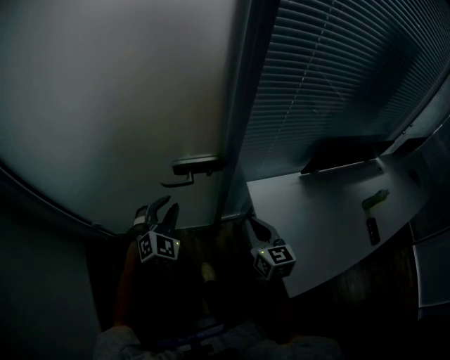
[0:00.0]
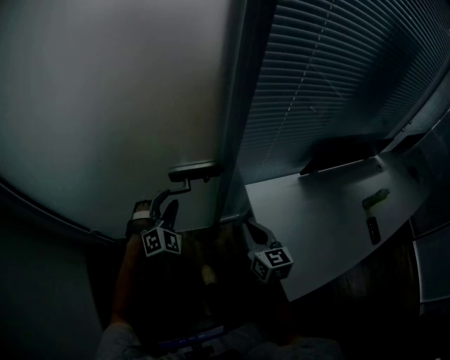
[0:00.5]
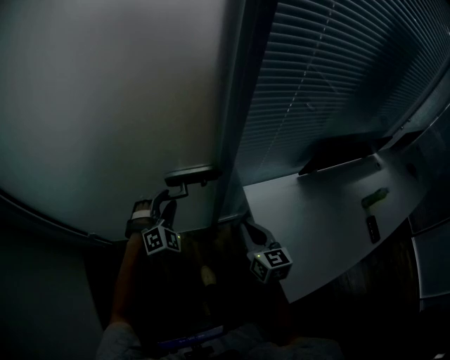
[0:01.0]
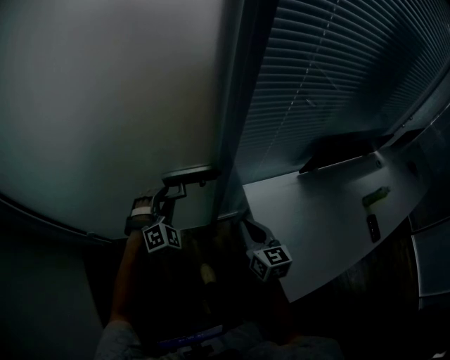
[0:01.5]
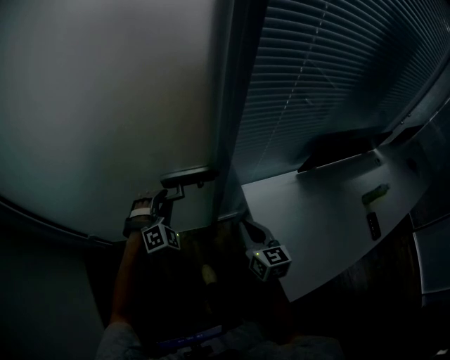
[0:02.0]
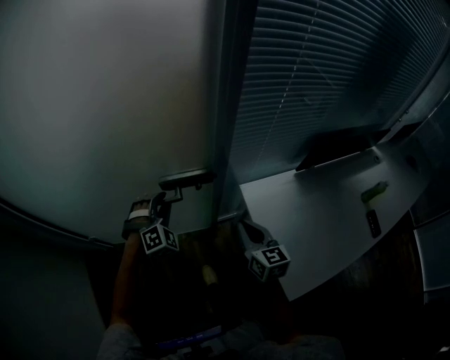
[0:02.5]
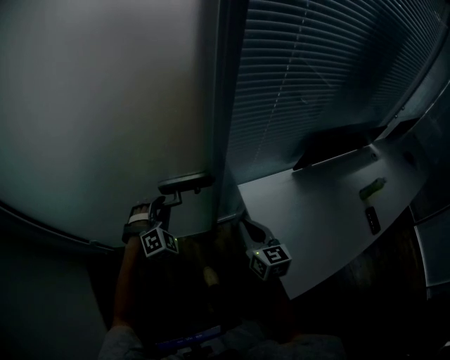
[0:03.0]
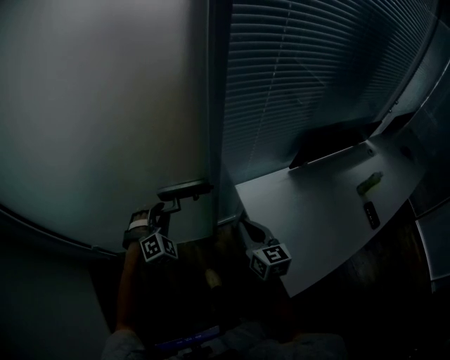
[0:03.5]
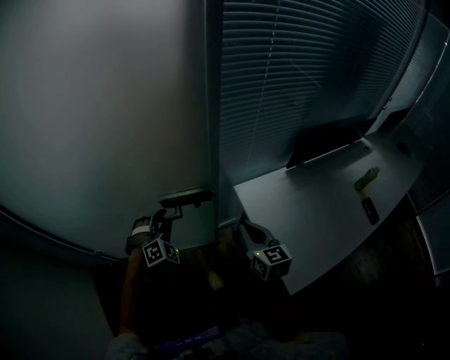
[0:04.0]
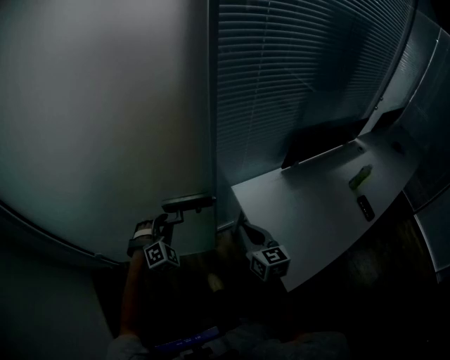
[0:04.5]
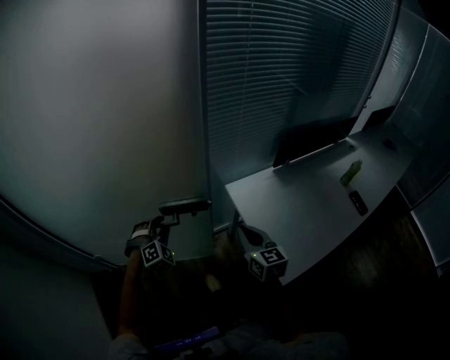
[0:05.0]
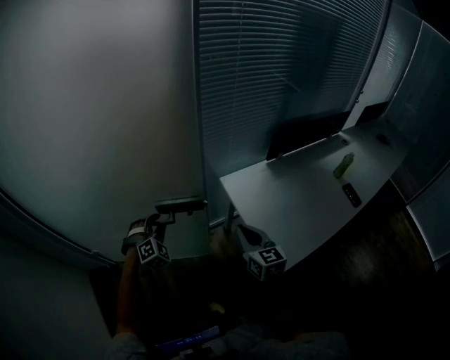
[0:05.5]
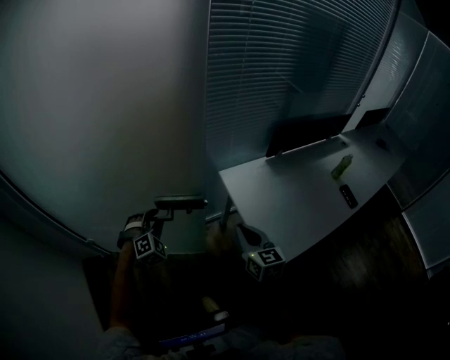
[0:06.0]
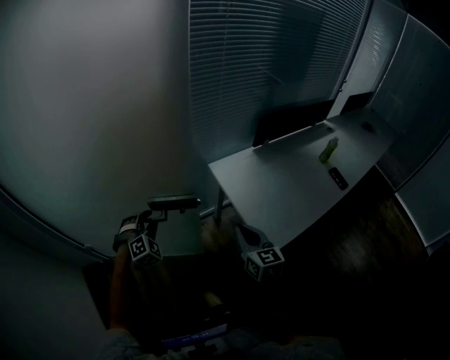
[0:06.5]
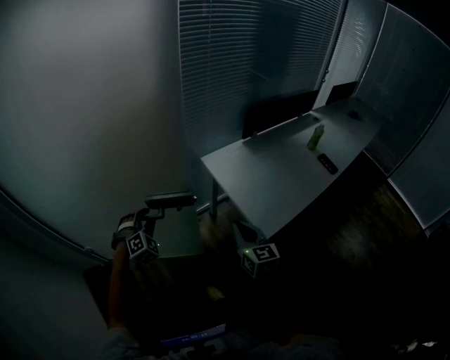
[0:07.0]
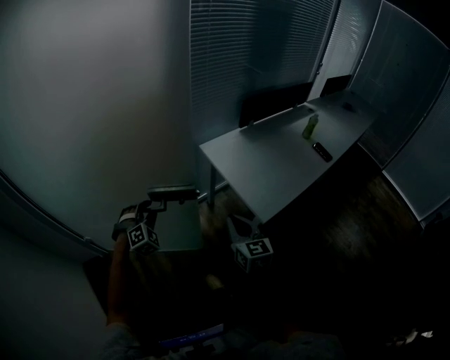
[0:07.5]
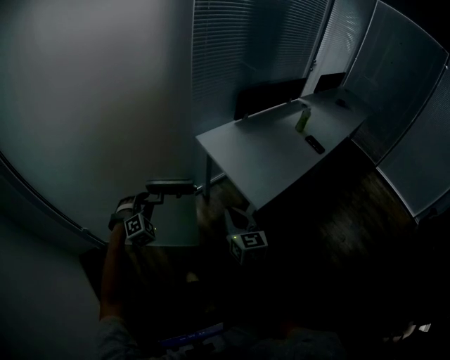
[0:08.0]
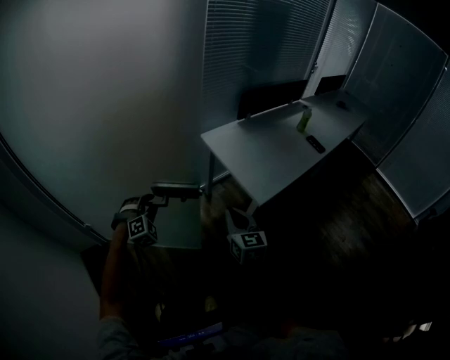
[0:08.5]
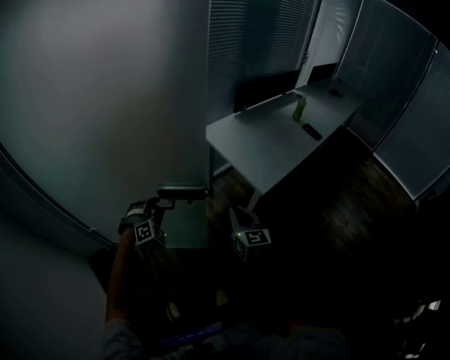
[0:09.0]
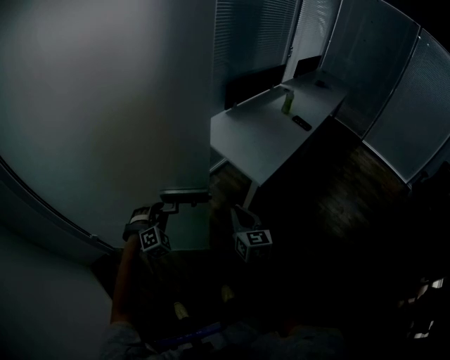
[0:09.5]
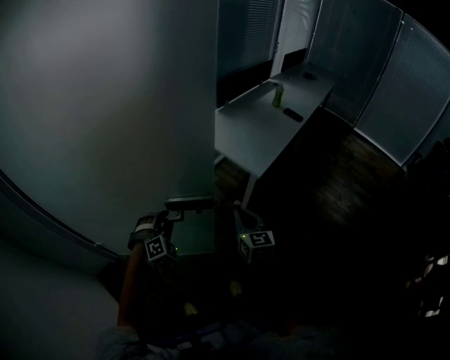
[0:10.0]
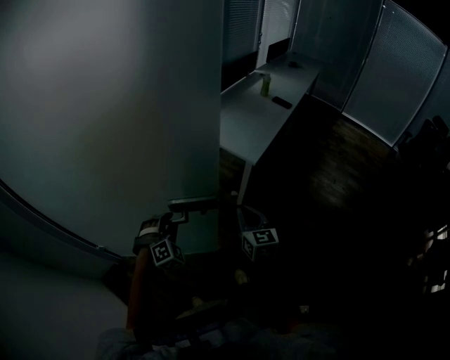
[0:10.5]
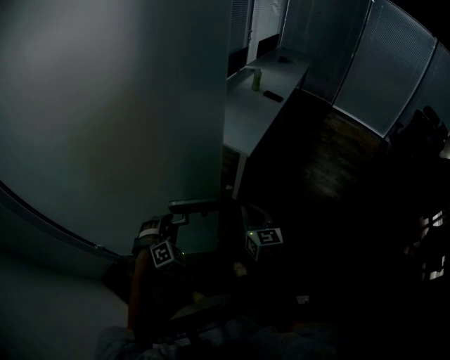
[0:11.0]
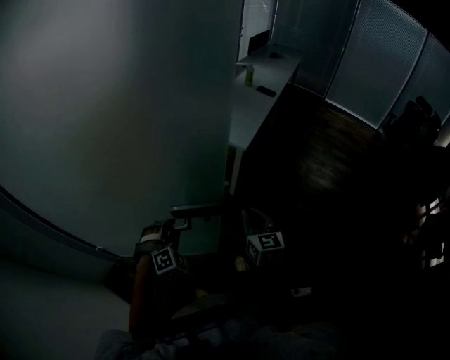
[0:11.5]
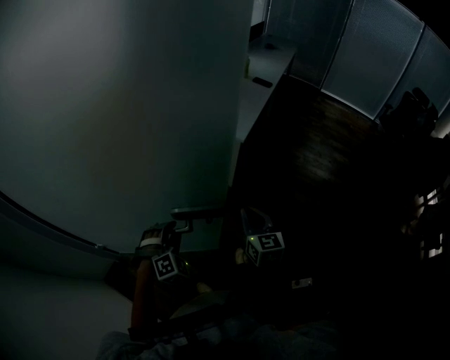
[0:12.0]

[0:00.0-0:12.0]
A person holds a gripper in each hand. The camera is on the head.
0:00.0 to 0:02.0: The left gripper travels forward by about 10 cm, and changes its angle by roughly 20 degrees.
0:02.0 to 0:04.0: The left gripper moves backward, about 5 cm.
0:04.0 to 0:06.0: Both grippers travel together backward, approximately 15 cm.
0:06.0 to 0:08.0: The grippers both shift backward by about 20 cm.
0:08.0 to 0:10.0: The left gripper travels backward by about 15 cm, while the right gripper travels backward and to the left by roughly 15 cm.
0:10.0 to 0:12.0: The grippers both shift backward by some 15 cm.

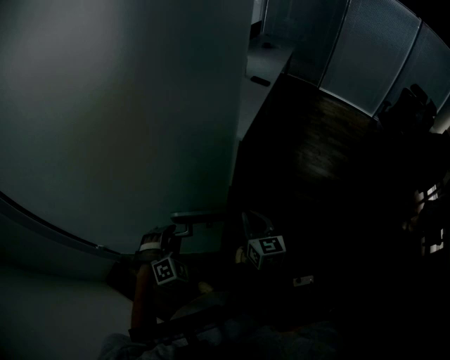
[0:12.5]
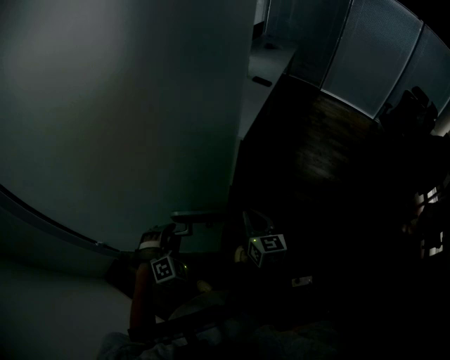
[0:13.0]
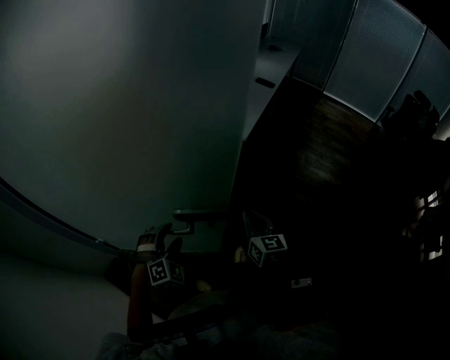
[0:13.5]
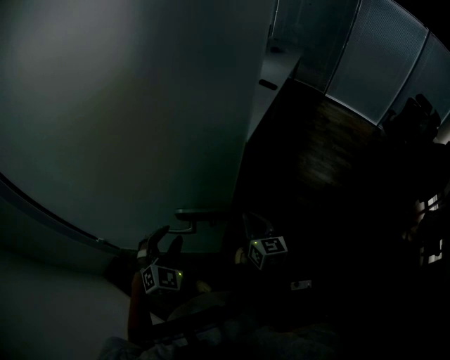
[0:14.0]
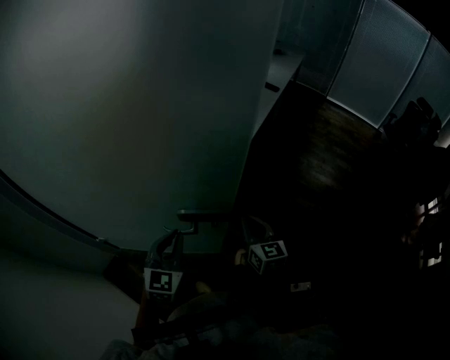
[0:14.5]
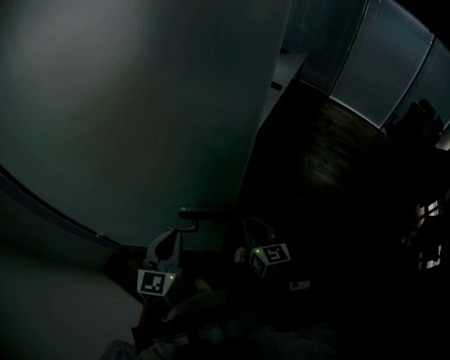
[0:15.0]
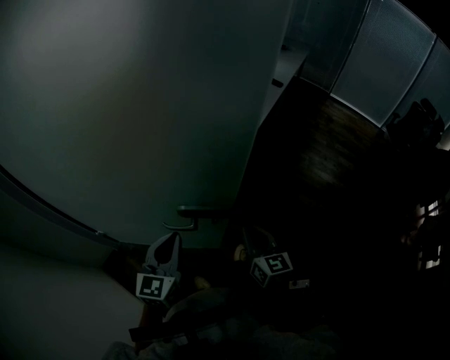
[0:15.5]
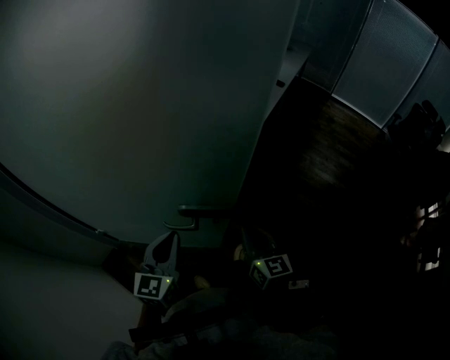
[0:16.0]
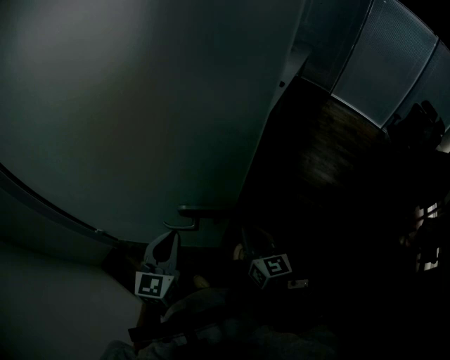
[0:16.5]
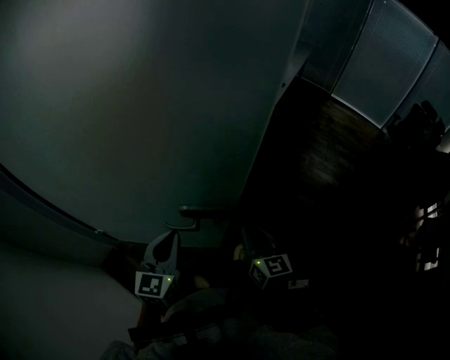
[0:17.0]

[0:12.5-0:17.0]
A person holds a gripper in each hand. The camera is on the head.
0:12.5 to 0:14.5: The left gripper heads upward, covering about 10 cm, rotates around the line of its fingers by some 50 degrees, counterclockwise from behind, and closes.
0:14.5 to 0:17.0: The grippers make only small movements.

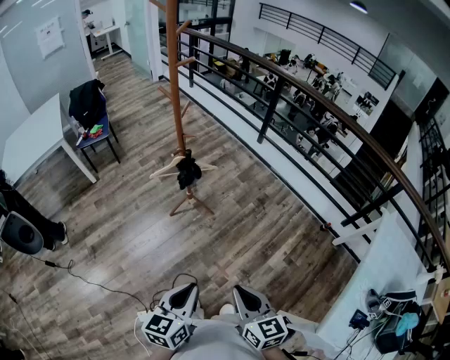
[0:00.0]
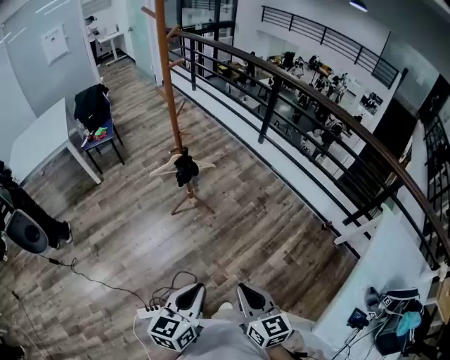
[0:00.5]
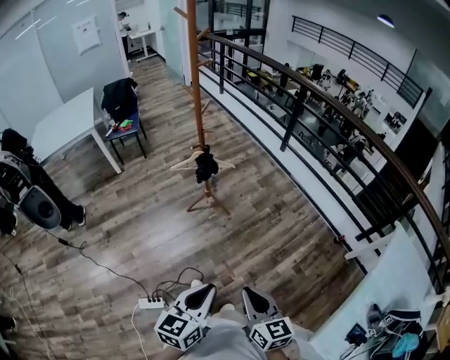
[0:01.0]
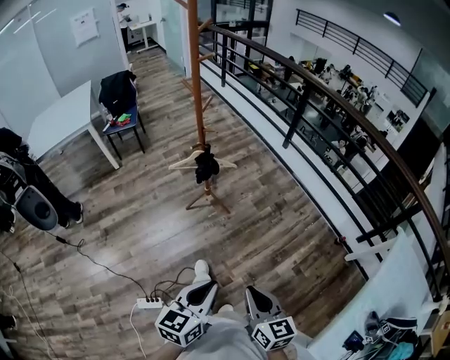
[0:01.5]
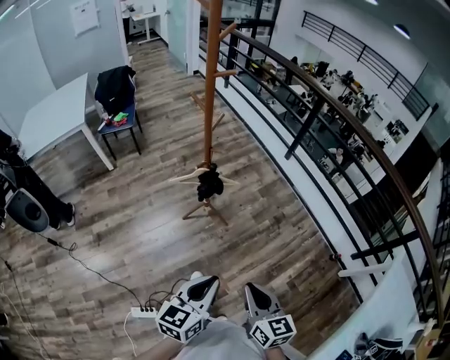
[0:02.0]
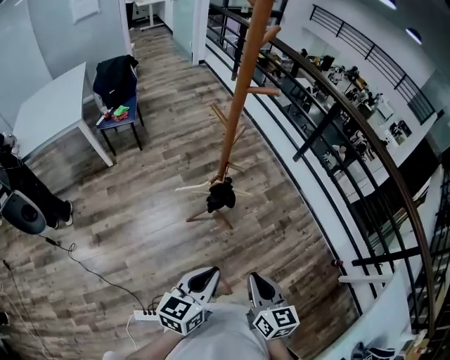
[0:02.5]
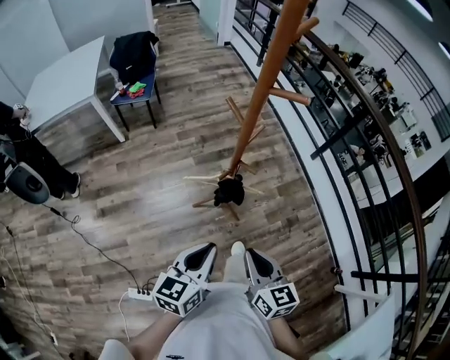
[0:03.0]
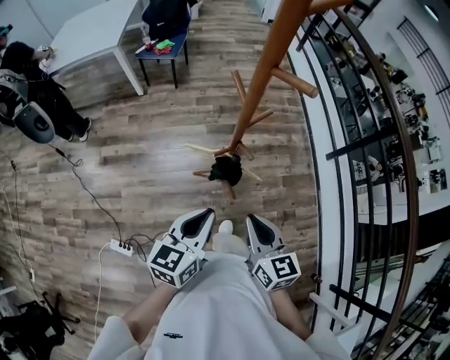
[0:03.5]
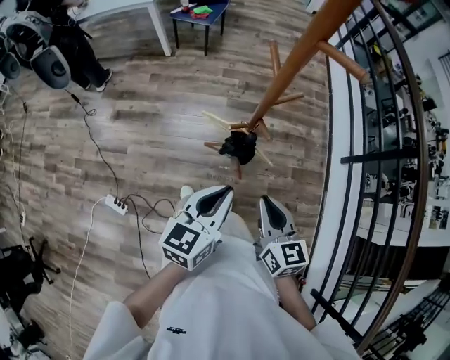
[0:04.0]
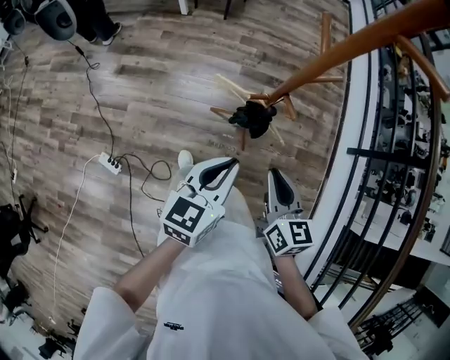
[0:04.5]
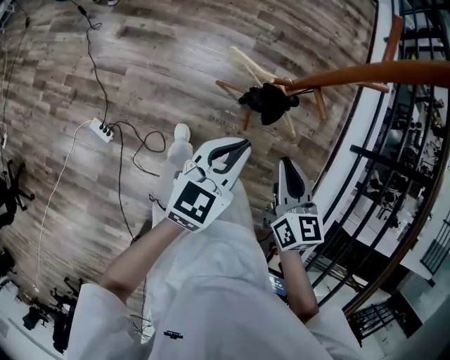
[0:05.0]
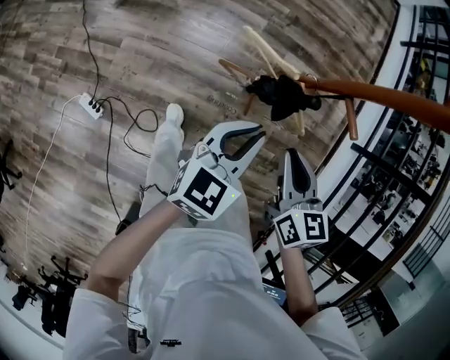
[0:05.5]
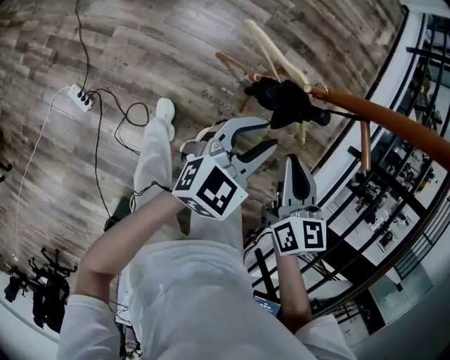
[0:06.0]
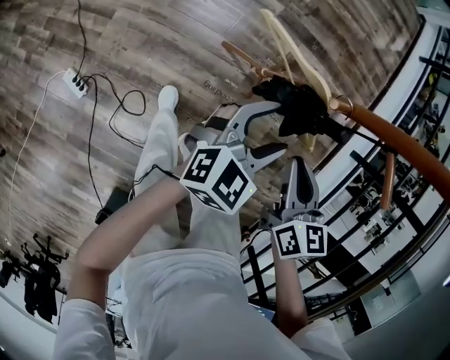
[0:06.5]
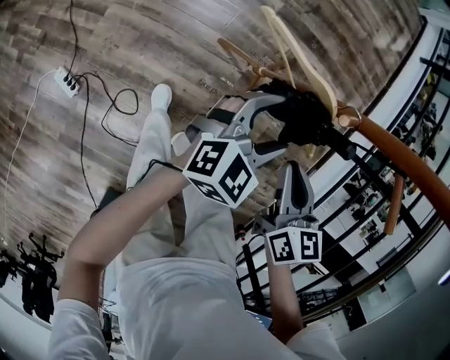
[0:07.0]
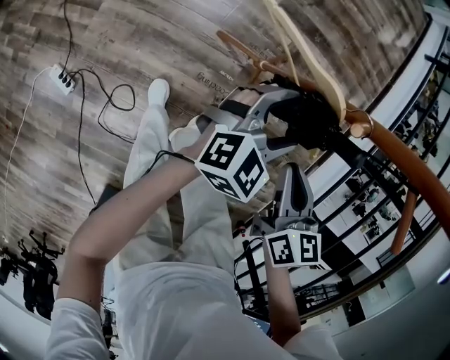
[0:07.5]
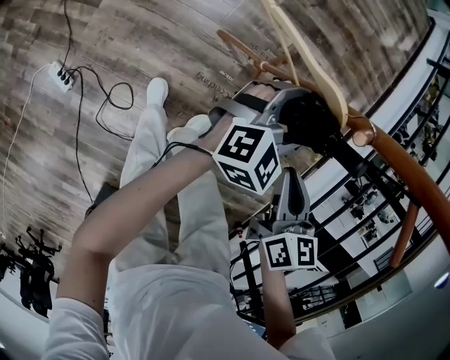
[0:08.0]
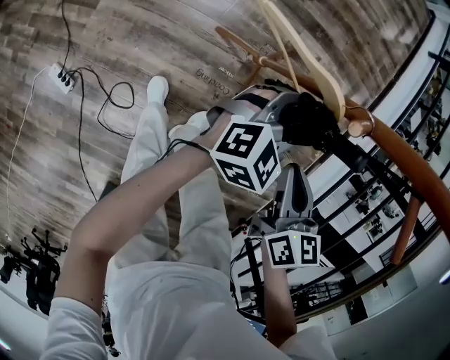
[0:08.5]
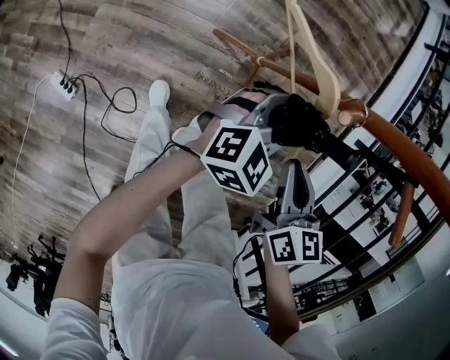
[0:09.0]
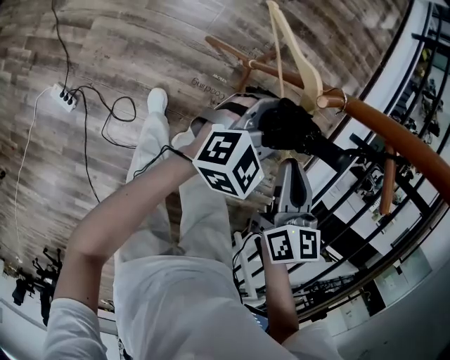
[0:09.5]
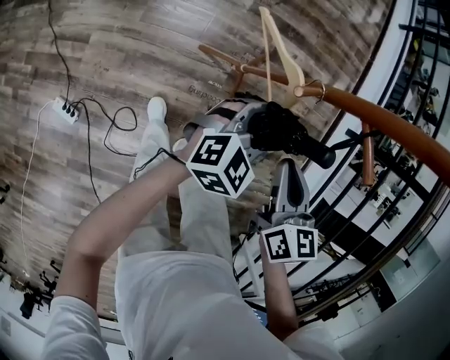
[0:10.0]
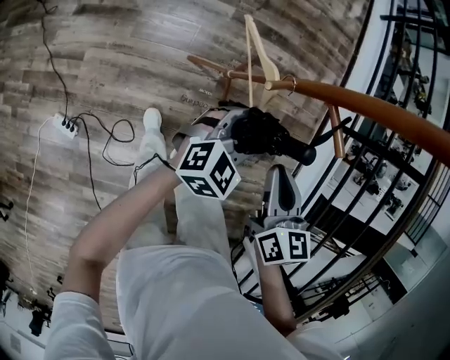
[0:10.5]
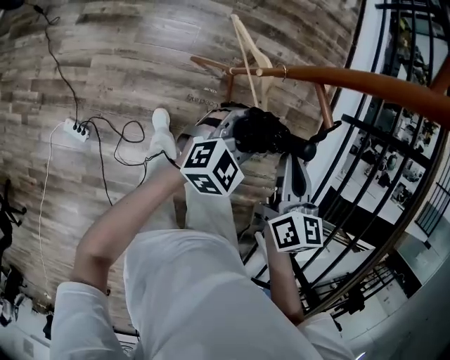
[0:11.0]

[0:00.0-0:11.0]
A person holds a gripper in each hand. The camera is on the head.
0:00.0 to 0:02.0: The two grippers go some 15 cm forward.
0:02.0 to 0:03.5: The left gripper moves approximately 35 cm, and turns by approximately 30 degrees. Meanwhile the right gripper shifts by roughly 40 cm, and turns by roughly 30 degrees.
0:03.5 to 0:05.5: The right gripper goes about 20 cm downward and forward, while the left gripper heads downward, covering about 20 cm.
0:05.5 to 0:07.5: The right gripper goes approximately 20 cm downward. Meanwhile the left gripper moves downward and forward, about 25 cm, and opens.
0:07.5 to 0:09.0: The left gripper closes.
0:09.0 to 0:11.0: The right gripper shifts roughly 20 cm upward. Meanwhile the left gripper is displaced upward and backward by some 20 cm.
